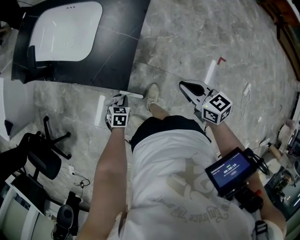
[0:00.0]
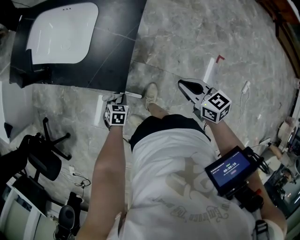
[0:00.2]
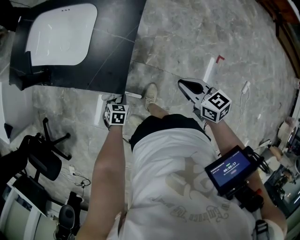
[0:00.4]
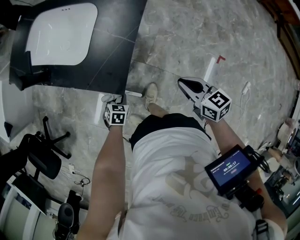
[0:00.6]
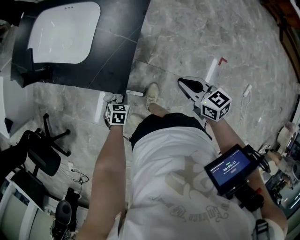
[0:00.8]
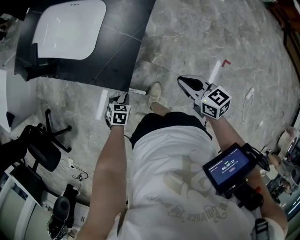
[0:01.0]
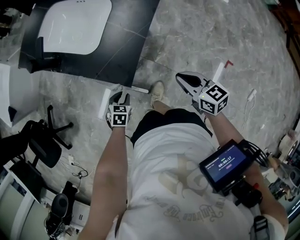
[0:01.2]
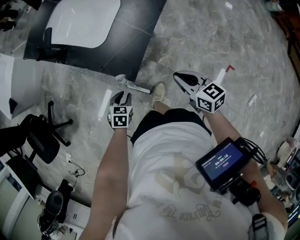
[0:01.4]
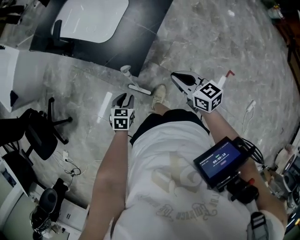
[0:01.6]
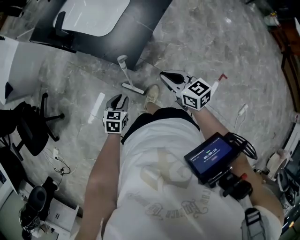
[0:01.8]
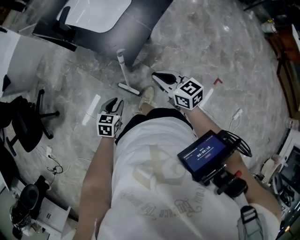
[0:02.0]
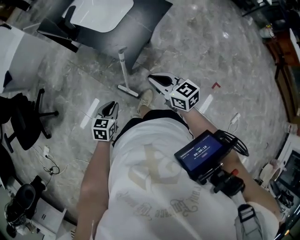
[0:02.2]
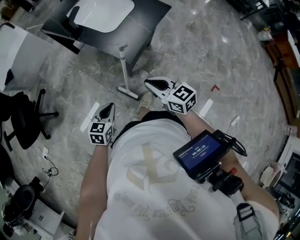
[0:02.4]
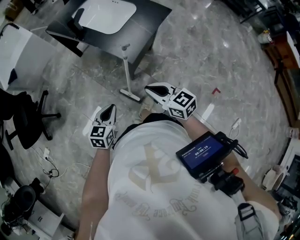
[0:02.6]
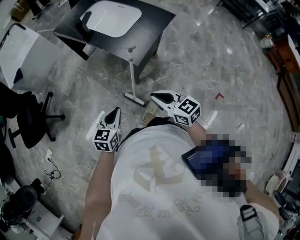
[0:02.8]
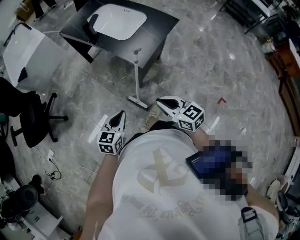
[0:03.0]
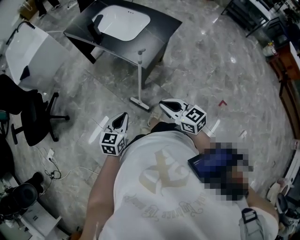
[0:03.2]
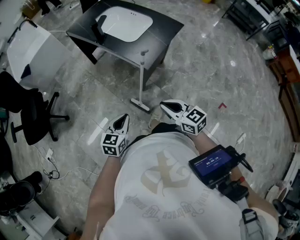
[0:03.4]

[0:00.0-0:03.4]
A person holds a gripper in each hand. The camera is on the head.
0:00.0 to 0:01.6: The left gripper shifts roughly 10 cm upward. Meanwhile the right gripper is displaced to the left by some 5 cm.
0:01.6 to 0:03.4: The left gripper is displaced backward, upward and to the left by some 25 cm, swivels about 30 degrees, and closes up; the right gripper heads backward, to the left and upward, covering roughly 20 cm.

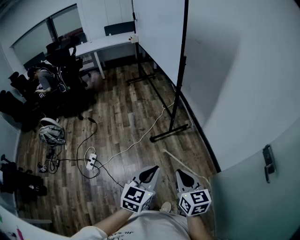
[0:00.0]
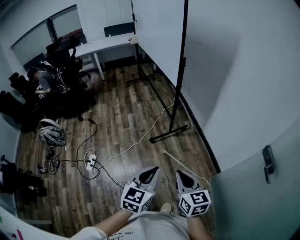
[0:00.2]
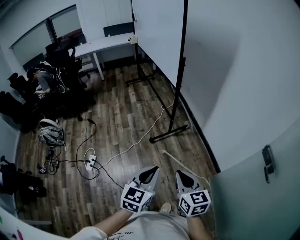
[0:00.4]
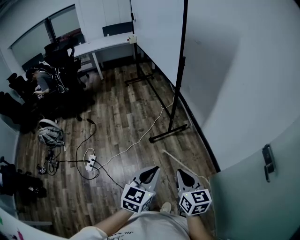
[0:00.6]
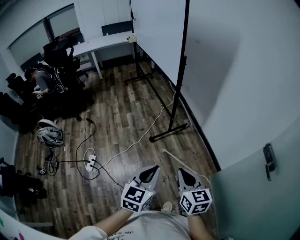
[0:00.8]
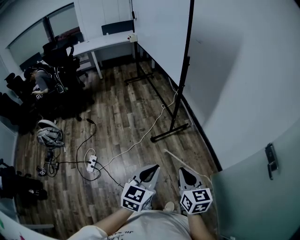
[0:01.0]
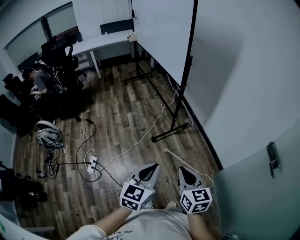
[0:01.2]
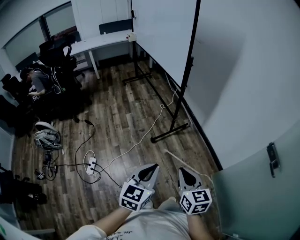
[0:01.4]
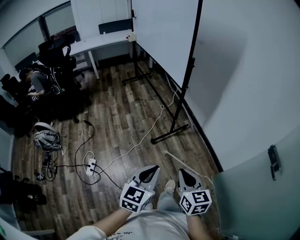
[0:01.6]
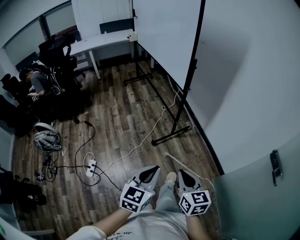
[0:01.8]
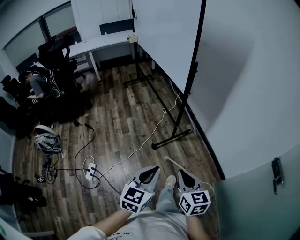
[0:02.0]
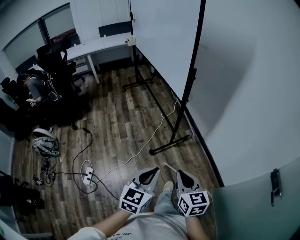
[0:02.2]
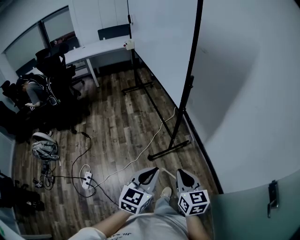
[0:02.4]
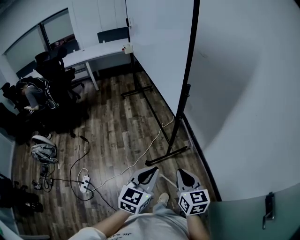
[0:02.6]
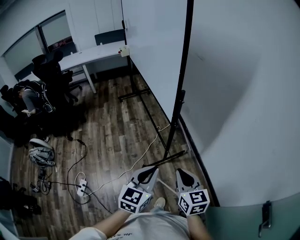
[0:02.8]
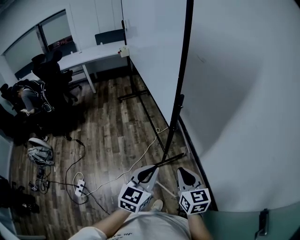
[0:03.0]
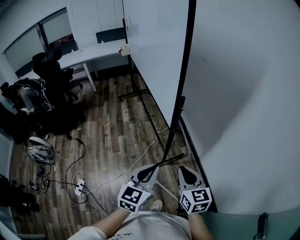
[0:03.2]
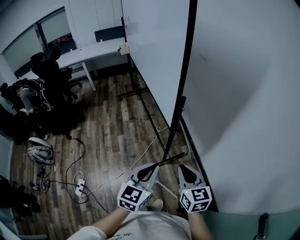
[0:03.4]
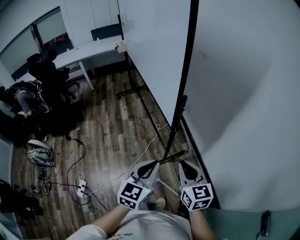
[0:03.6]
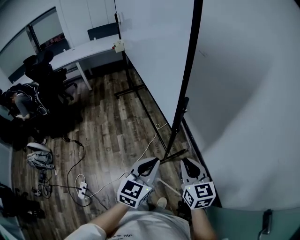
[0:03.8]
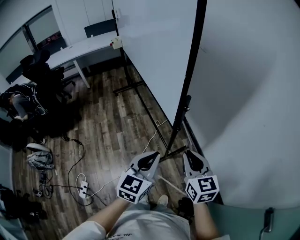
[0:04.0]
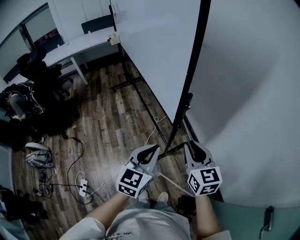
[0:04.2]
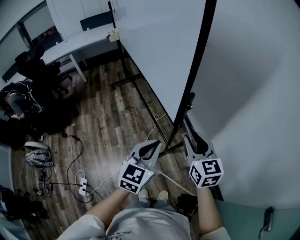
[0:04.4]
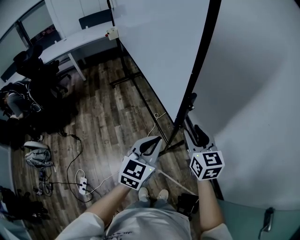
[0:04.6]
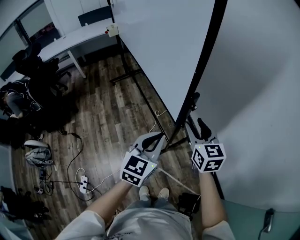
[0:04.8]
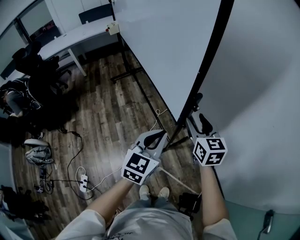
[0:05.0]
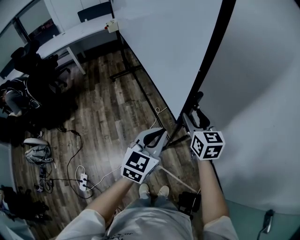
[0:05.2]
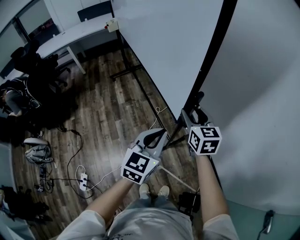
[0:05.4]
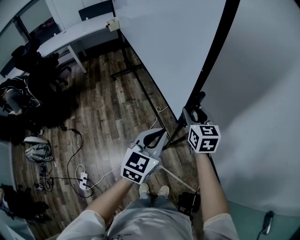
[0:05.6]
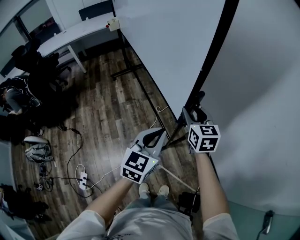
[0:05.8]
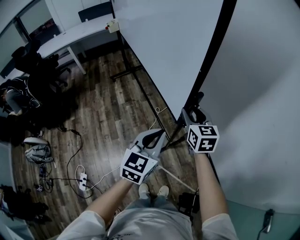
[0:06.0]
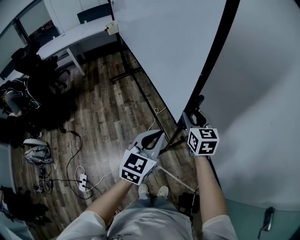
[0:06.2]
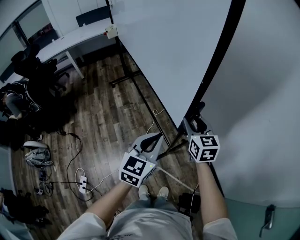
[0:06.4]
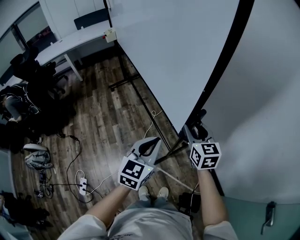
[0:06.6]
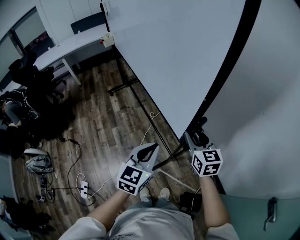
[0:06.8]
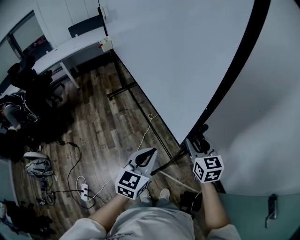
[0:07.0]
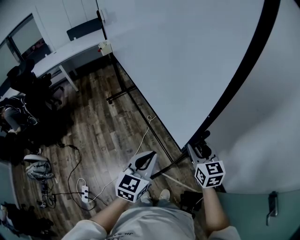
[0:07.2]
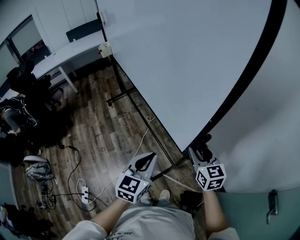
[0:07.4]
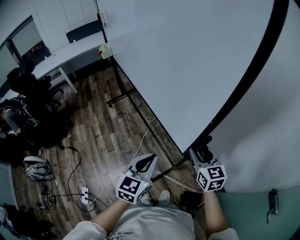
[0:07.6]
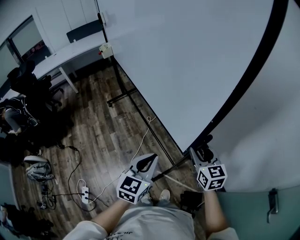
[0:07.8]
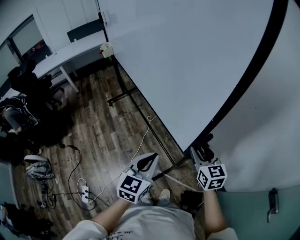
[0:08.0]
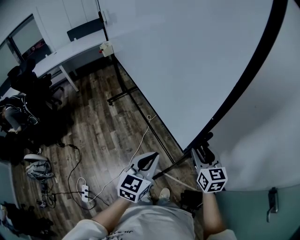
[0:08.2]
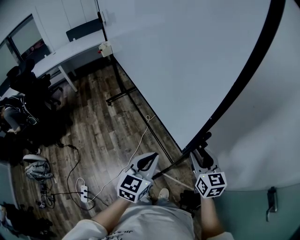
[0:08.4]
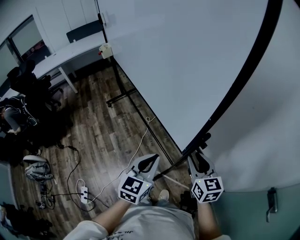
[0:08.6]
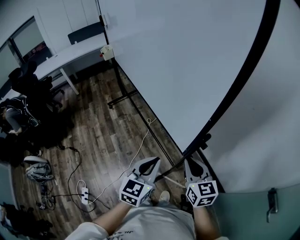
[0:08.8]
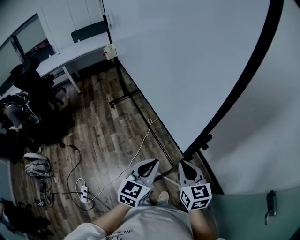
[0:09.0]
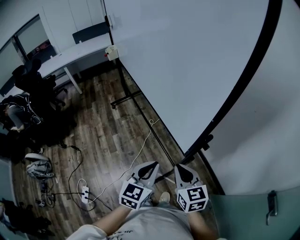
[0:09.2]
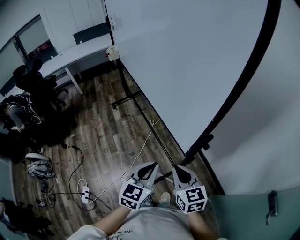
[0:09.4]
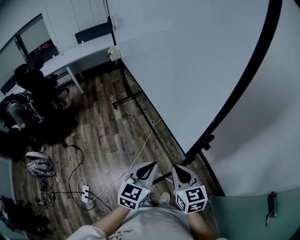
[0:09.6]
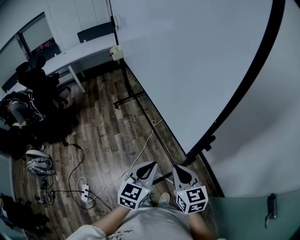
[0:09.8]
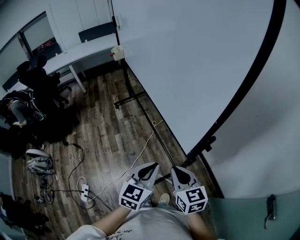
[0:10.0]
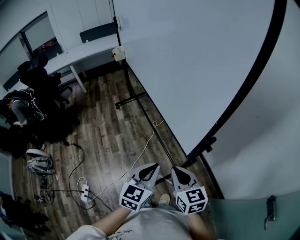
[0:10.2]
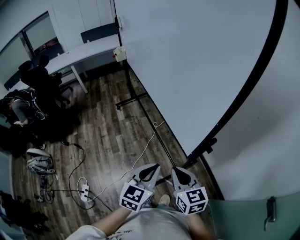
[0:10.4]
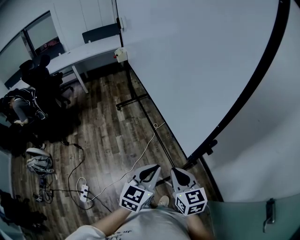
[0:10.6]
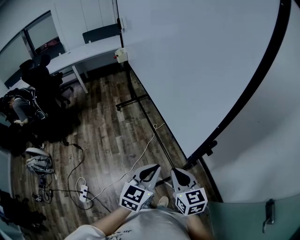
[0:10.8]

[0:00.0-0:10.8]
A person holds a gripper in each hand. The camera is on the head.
0:00.0 to 0:01.6: Both grippers move to the left, approximately 10 cm.
0:01.6 to 0:03.0: The grippers both shift forward by about 35 cm.
0:03.0 to 0:04.6: The grippers both shift forward by about 20 cm. The right gripper opens up.
0:04.6 to 0:06.2: The right gripper is displaced forward by some 10 cm.
0:06.2 to 0:07.8: The left gripper is displaced backward by approximately 10 cm; the right gripper shifts about 20 cm backward and to the right.
0:07.8 to 0:09.2: The right gripper shifts approximately 15 cm backward and to the left, and closes up.
0:09.2 to 0:10.8: The grippers move only a little.

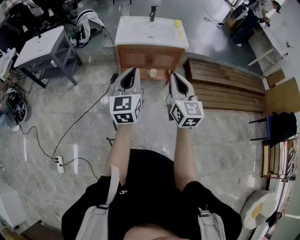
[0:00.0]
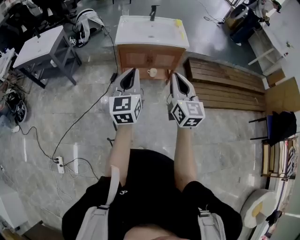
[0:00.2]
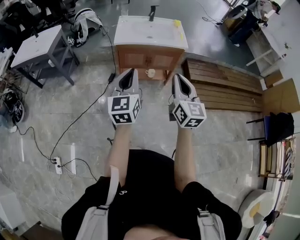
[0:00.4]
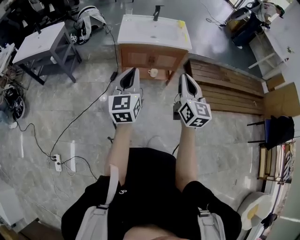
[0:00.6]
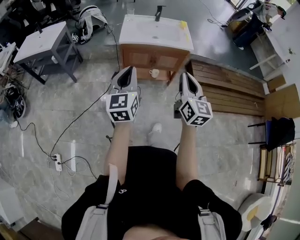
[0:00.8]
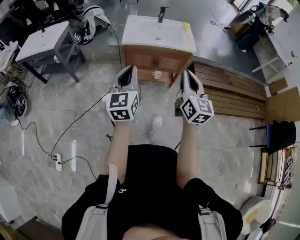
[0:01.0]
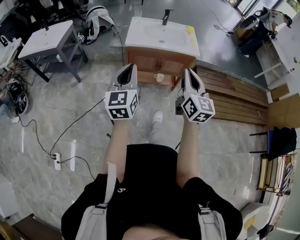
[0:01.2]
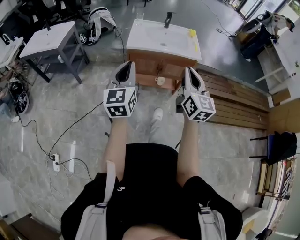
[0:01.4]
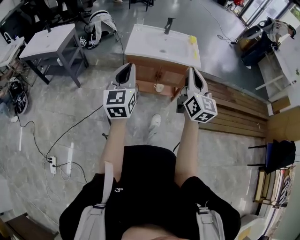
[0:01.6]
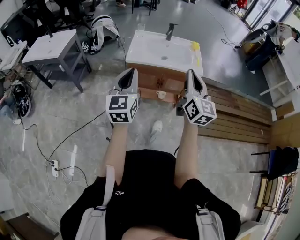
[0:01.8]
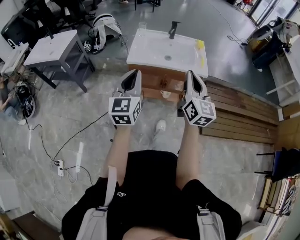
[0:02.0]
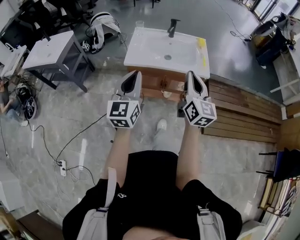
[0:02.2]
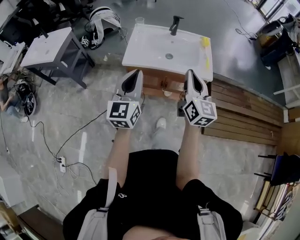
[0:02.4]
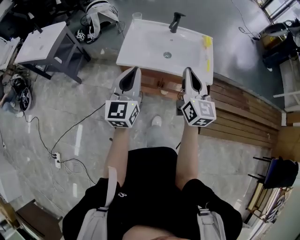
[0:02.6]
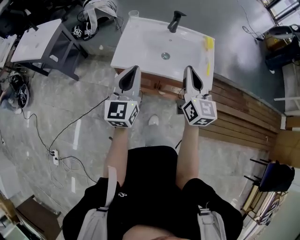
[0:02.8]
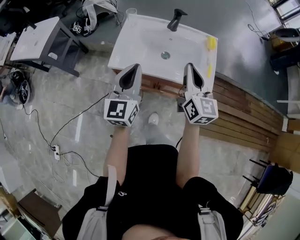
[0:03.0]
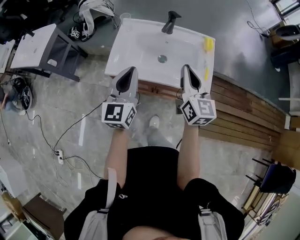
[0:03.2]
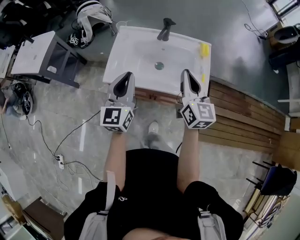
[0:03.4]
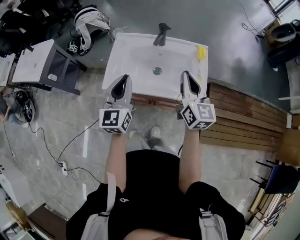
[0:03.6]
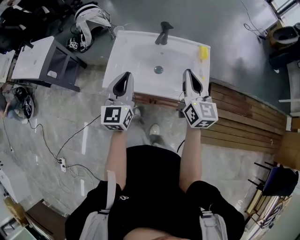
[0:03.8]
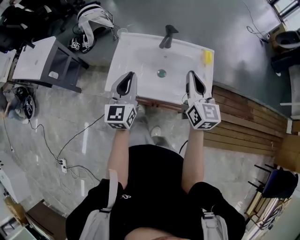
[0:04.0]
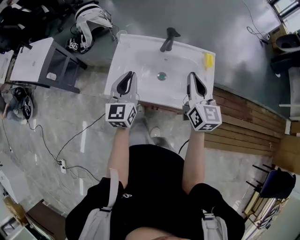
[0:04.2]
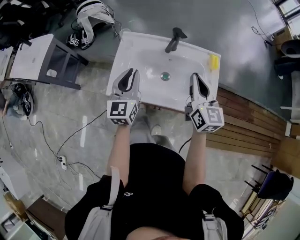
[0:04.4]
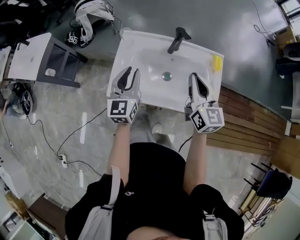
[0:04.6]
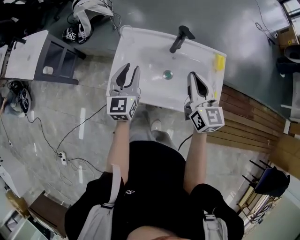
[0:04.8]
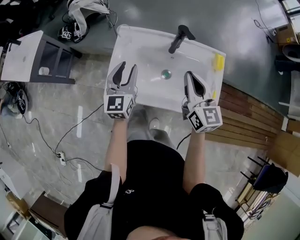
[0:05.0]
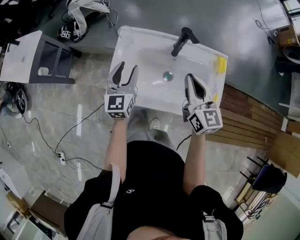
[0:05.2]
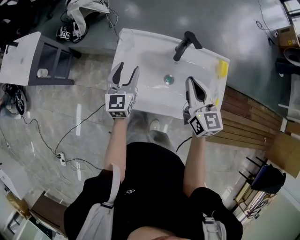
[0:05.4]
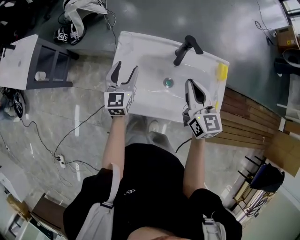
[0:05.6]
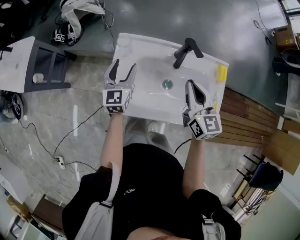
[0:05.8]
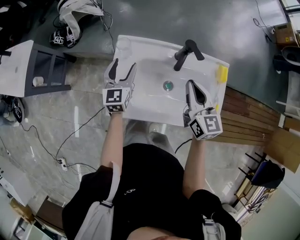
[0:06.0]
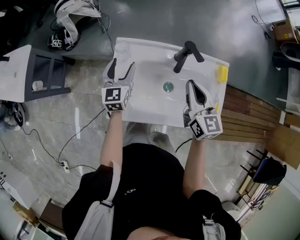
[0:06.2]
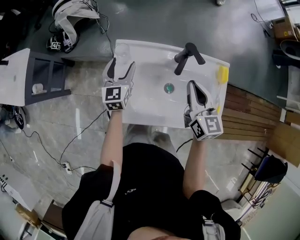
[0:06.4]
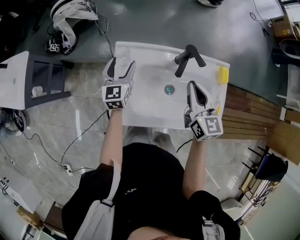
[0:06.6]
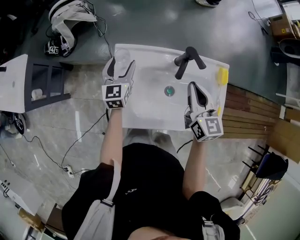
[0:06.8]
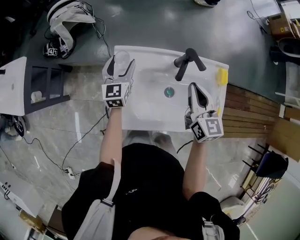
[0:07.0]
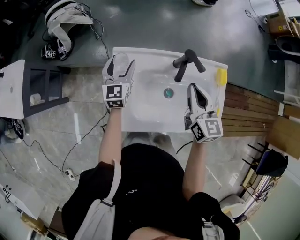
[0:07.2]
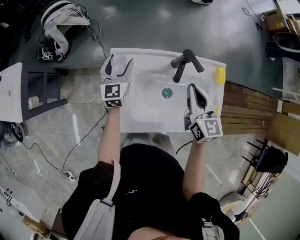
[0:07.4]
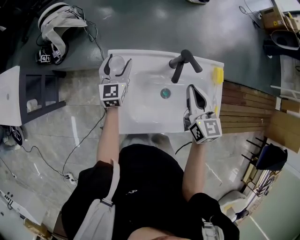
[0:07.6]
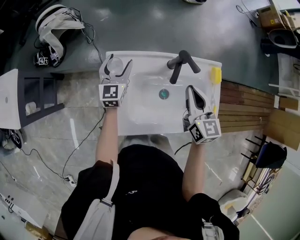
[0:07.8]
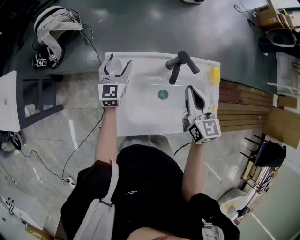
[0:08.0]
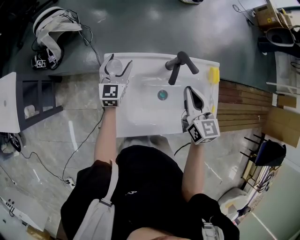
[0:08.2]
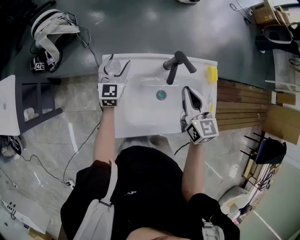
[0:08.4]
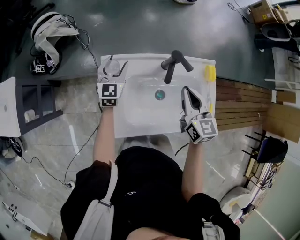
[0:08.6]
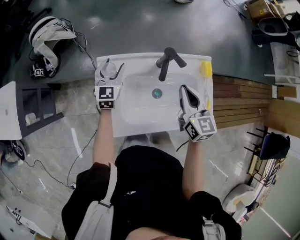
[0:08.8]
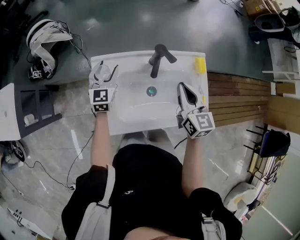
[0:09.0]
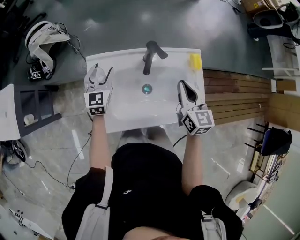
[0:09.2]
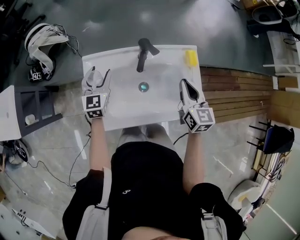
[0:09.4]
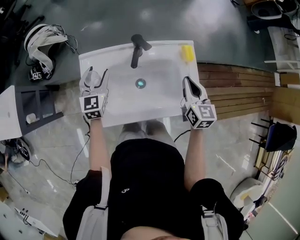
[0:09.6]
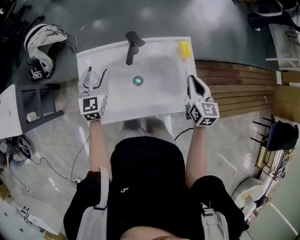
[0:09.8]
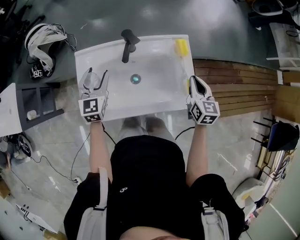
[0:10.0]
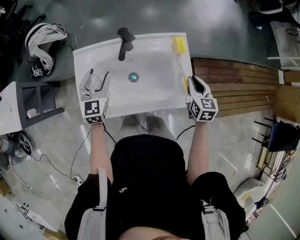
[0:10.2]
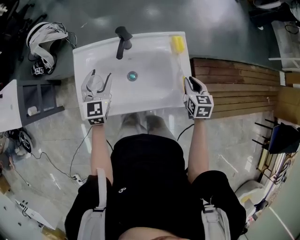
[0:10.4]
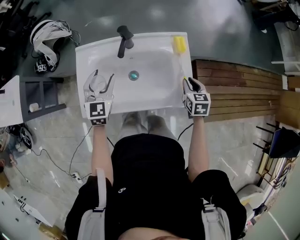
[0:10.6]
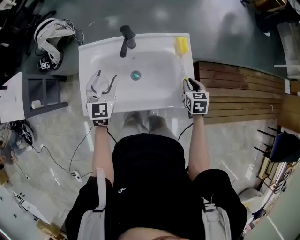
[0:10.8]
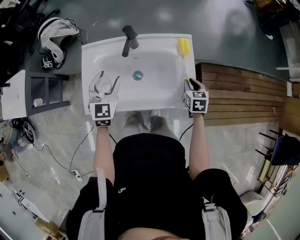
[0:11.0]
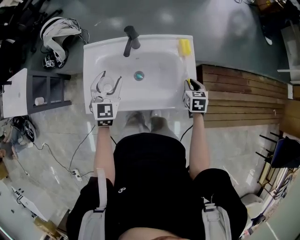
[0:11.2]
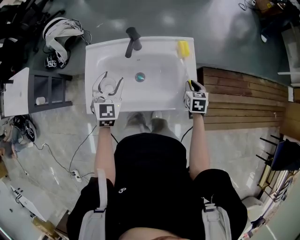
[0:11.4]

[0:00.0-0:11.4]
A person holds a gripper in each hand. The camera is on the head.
0:00.0 to 0:01.4: The right gripper goes about 10 cm forward. Meanwhile the left gripper shifts roughly 10 cm forward and to the left.
0:01.4 to 0:02.8: The two grippers go about 35 cm forward.
0:02.8 to 0:04.2: Both grippers travel together forward, roughly 15 cm.
0:04.2 to 0:05.6: The left gripper travels forward and downward by some 20 cm, and opens. Meanwhile the right gripper is displaced forward, downward and to the left by some 15 cm.
0:05.6 to 0:07.2: The right gripper heads forward, covering some 5 cm. Meanwhile the left gripper travels forward by some 10 cm.
0:07.2 to 0:08.6: The grippers stay close to where they were, moving slightly.
0:08.6 to 0:10.0: The right gripper heads to the right, covering about 25 cm. The left gripper is displaced backward, to the right and upward by some 15 cm.
0:10.0 to 0:11.4: The right gripper heads downward, covering about 10 cm, and turns by about 20 degrees. Meanwhile the left gripper moves backward and to the right, some 10 cm.
